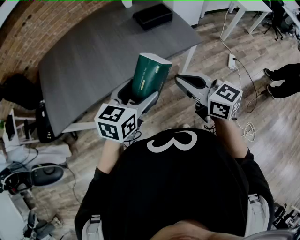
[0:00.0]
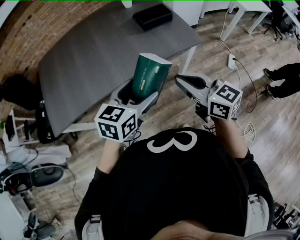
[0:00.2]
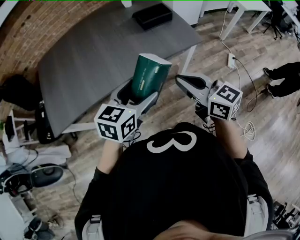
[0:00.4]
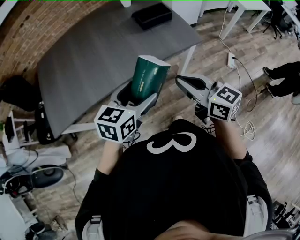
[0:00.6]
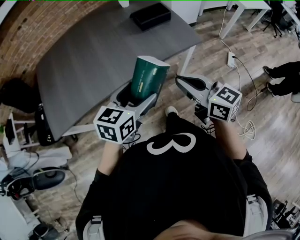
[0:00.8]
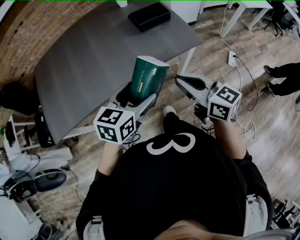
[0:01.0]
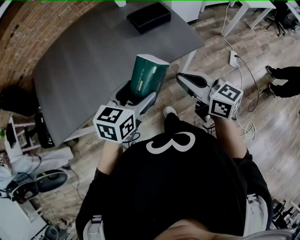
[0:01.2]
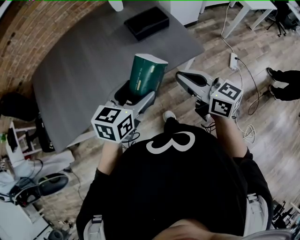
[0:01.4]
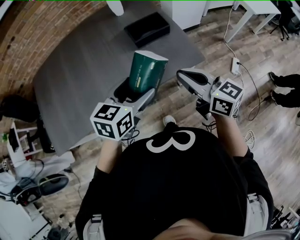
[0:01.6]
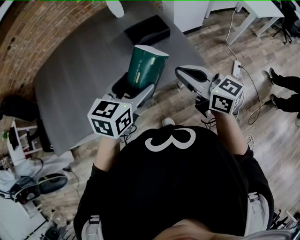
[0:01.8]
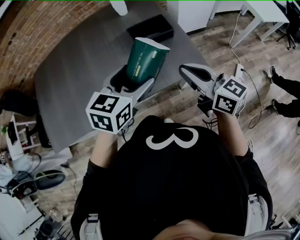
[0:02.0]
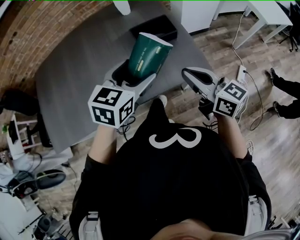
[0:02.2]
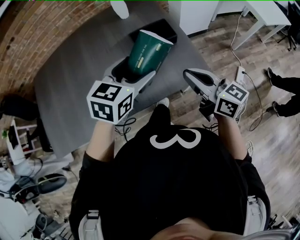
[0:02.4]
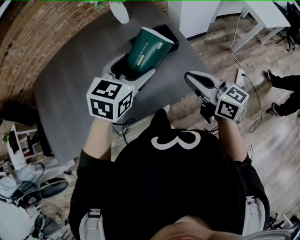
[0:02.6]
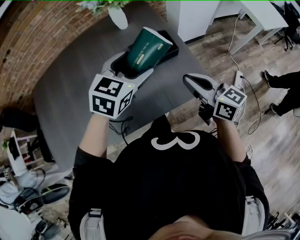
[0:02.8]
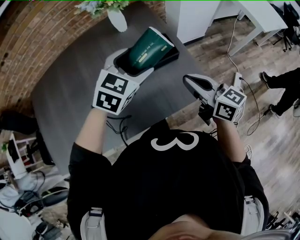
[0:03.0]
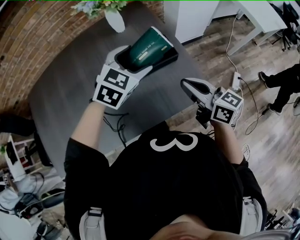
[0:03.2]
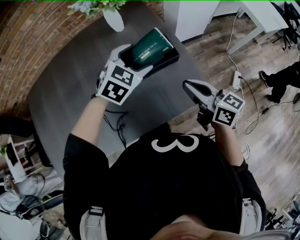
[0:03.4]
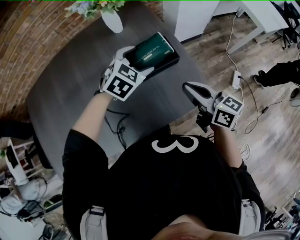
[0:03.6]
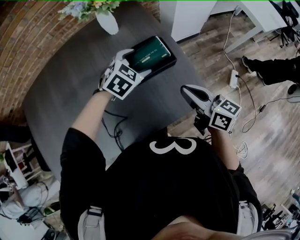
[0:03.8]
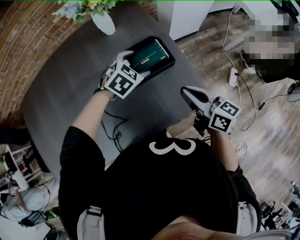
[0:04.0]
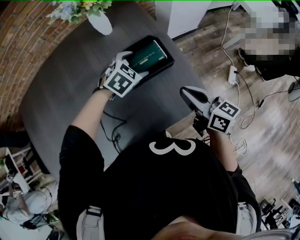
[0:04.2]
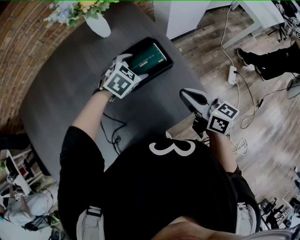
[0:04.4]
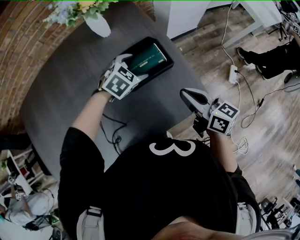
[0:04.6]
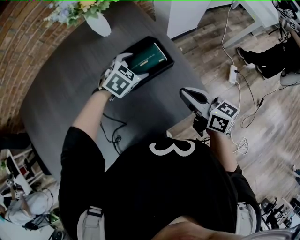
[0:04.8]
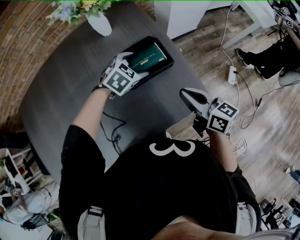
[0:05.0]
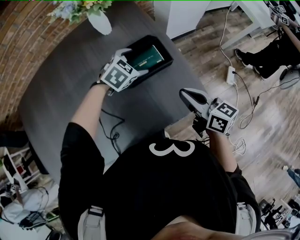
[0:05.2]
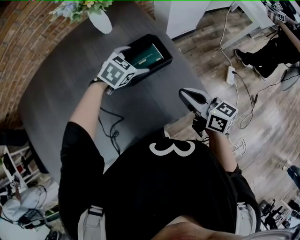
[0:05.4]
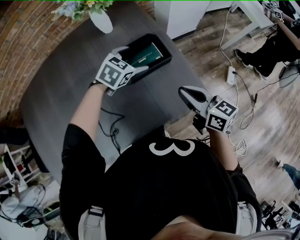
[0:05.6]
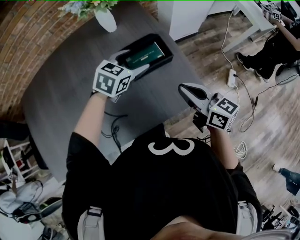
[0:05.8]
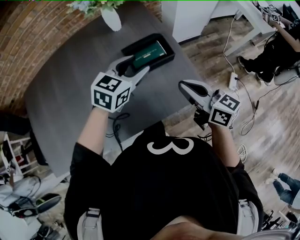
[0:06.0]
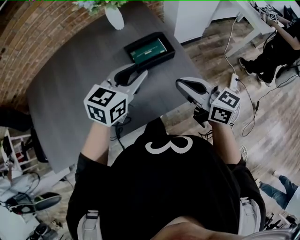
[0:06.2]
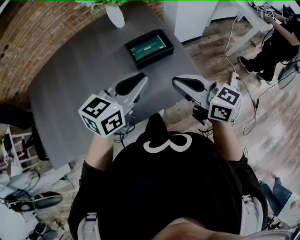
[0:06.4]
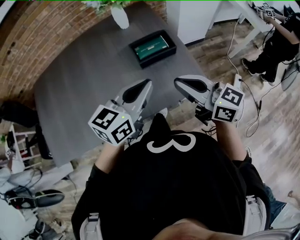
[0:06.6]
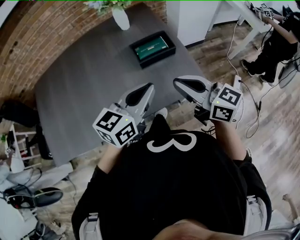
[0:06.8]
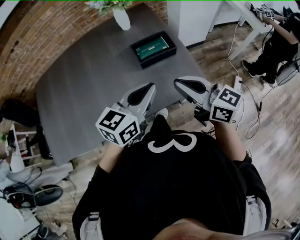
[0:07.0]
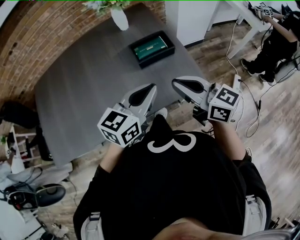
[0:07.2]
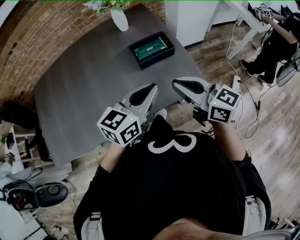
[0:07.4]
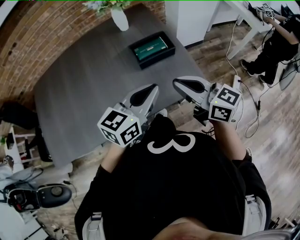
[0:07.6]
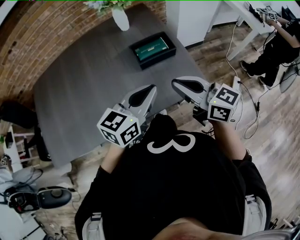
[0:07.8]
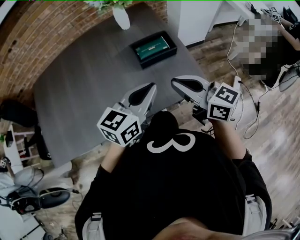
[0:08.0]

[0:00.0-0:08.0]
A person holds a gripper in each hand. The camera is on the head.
0:00.0 to 0:01.6: The right gripper is displaced forward and to the right by some 20 cm. Meanwhile the left gripper shifts some 15 cm forward.
0:01.6 to 0:03.2: The left gripper is displaced forward by some 25 cm, and swivels roughly 30 degrees, while the right gripper moves forward, approximately 15 cm.
0:03.2 to 0:04.8: The left gripper goes roughly 20 cm downward and forward, and changes its angle by some 20 degrees, while the right gripper moves downward, about 5 cm.
0:04.8 to 0:06.4: The right gripper is displaced upward and backward by roughly 15 cm, and swivels about 20 degrees. The left gripper shifts approximately 30 cm backward and upward, tips its fingers upward by roughly 40 degrees, and closes its fingers.
0:06.4 to 0:08.0: The grippers move only a little.

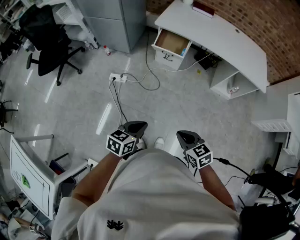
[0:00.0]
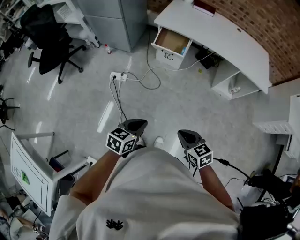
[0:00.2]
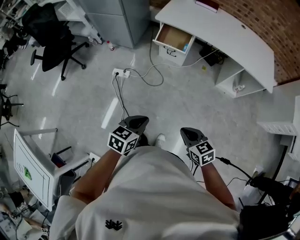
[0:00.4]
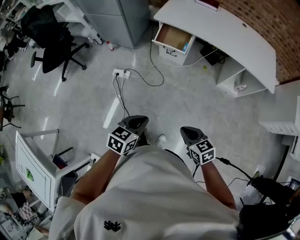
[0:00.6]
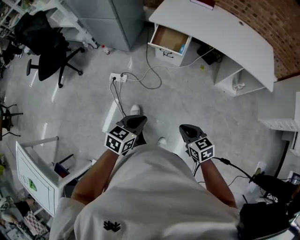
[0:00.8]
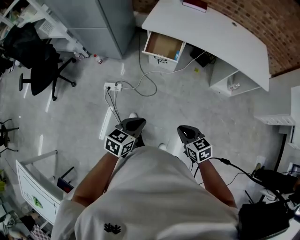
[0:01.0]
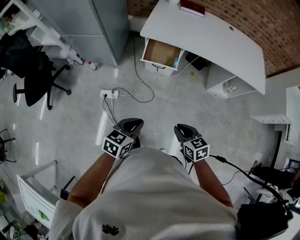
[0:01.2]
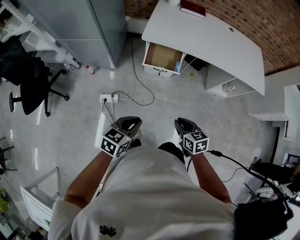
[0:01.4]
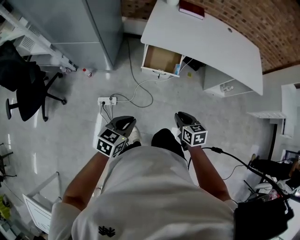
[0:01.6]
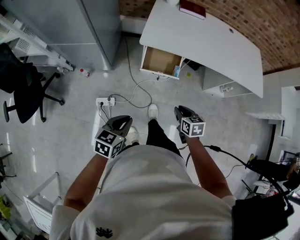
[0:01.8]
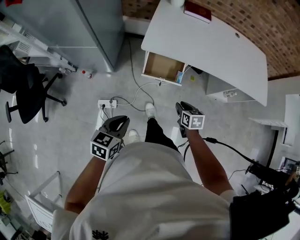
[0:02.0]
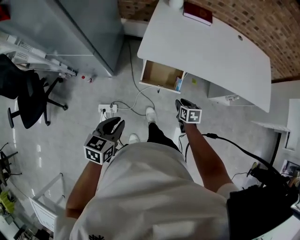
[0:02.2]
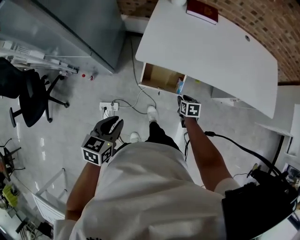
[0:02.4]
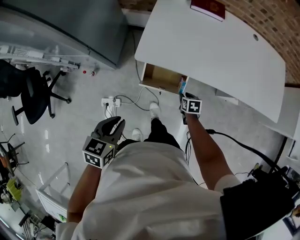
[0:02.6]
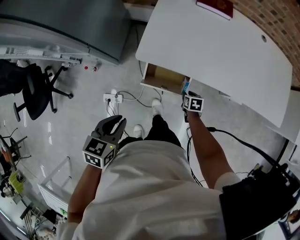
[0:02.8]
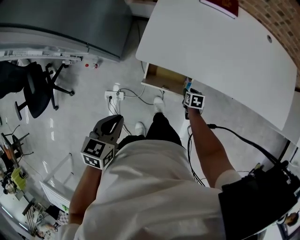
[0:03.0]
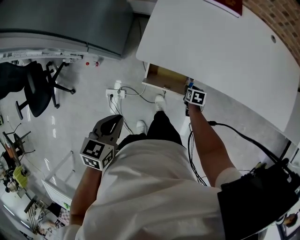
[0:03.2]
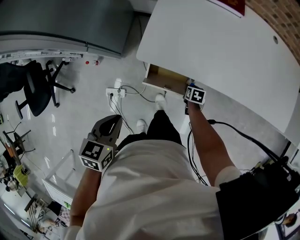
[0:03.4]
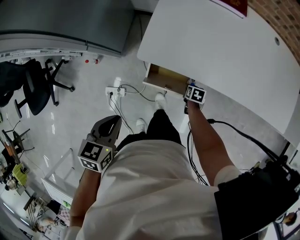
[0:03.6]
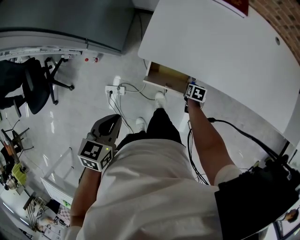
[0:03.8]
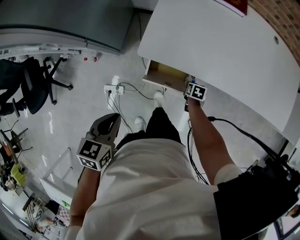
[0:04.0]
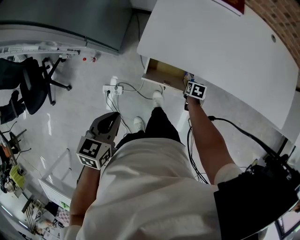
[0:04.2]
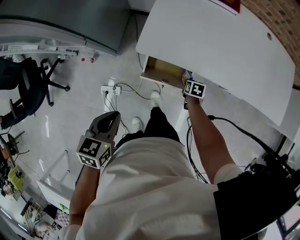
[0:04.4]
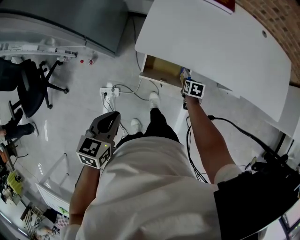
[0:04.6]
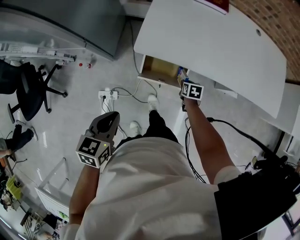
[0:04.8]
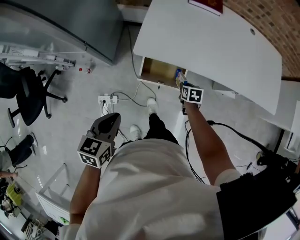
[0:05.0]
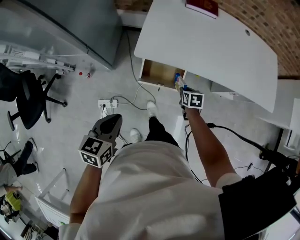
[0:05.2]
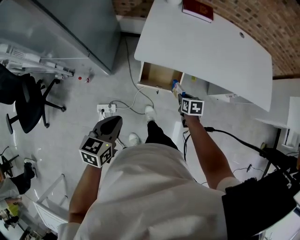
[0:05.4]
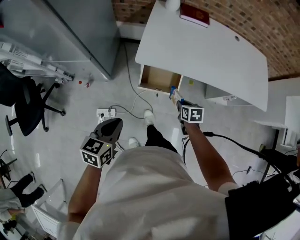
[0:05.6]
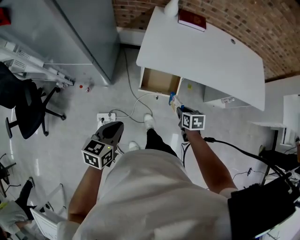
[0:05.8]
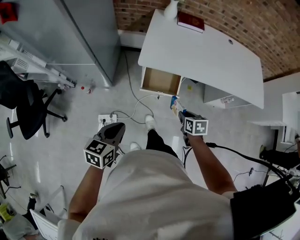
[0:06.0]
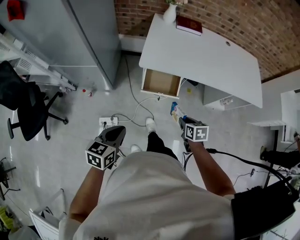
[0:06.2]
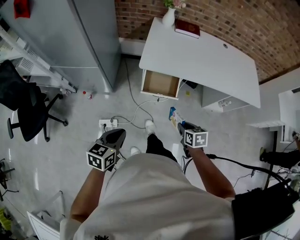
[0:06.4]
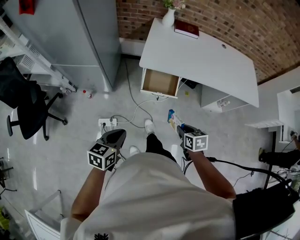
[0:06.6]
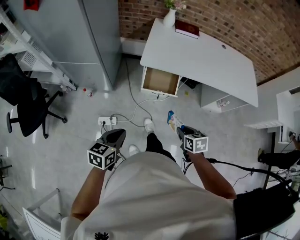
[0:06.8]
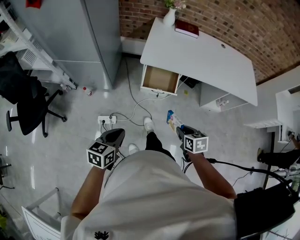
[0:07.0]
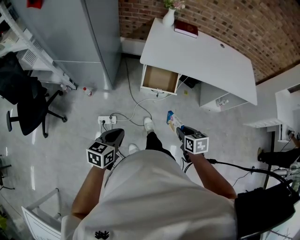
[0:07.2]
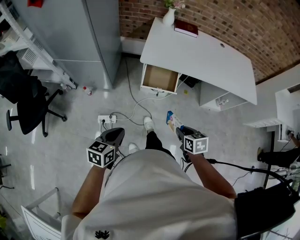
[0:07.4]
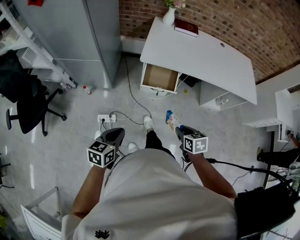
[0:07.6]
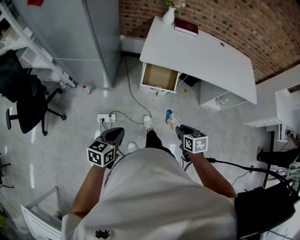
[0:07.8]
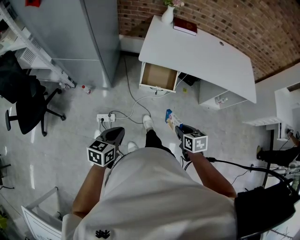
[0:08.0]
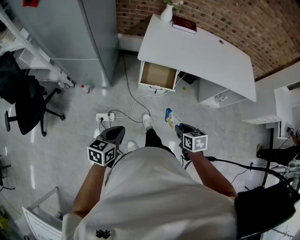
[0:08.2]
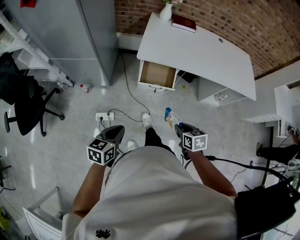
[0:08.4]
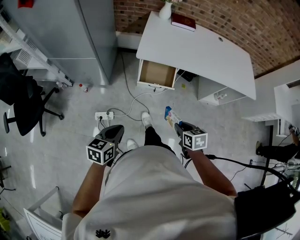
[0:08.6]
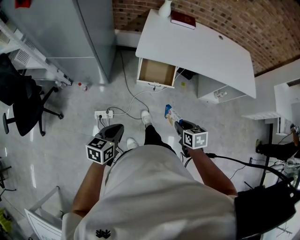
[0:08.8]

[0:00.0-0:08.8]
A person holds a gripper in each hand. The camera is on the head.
0:00.0 to 0:01.4: The two grippers go roughly 35 cm forward. The right gripper rotates approximately 20 degrees.
0:01.4 to 0:03.0: The pair of grippers is taken forward, about 50 cm. The right gripper shifts about 30 cm downward, swivels about 30 degrees, and opens; the left gripper changes its angle by about 20 degrees.
0:03.0 to 0:04.4: The grippers make only small movements.
0:04.4 to 0:05.8: The right gripper travels upward and backward by about 30 cm. Meanwhile the left gripper shifts roughly 15 cm backward and upward.
0:05.8 to 0:07.4: The two grippers go about 25 cm backward.
0:07.4 to 0:08.8: The grippers make only small movements.

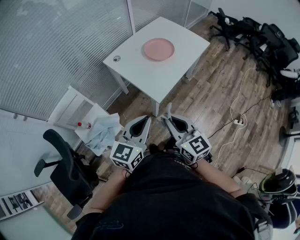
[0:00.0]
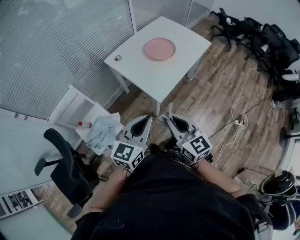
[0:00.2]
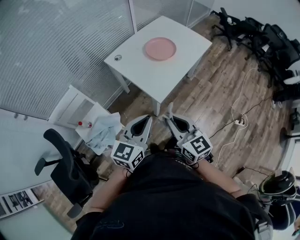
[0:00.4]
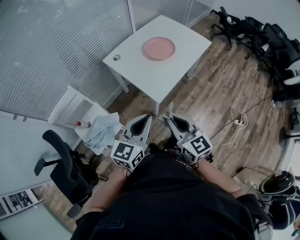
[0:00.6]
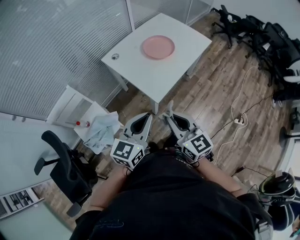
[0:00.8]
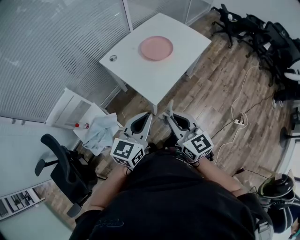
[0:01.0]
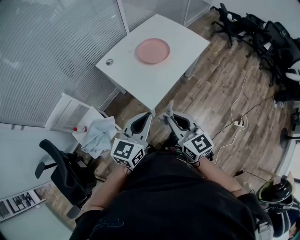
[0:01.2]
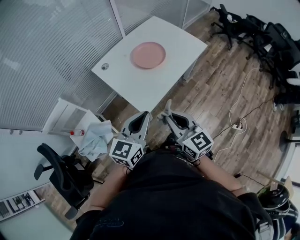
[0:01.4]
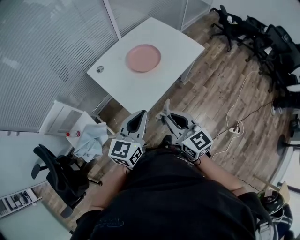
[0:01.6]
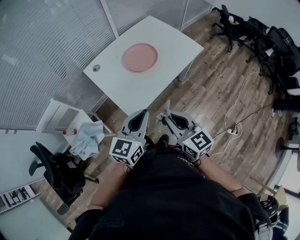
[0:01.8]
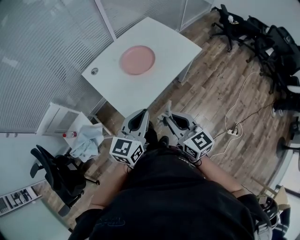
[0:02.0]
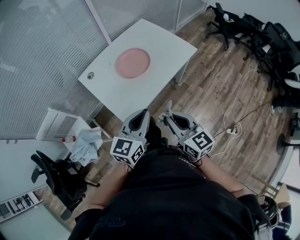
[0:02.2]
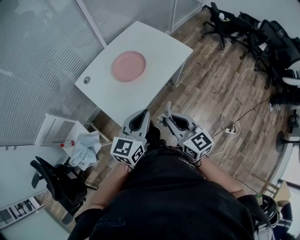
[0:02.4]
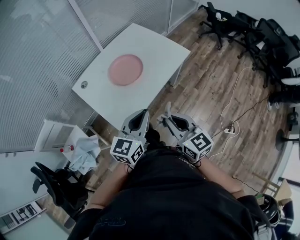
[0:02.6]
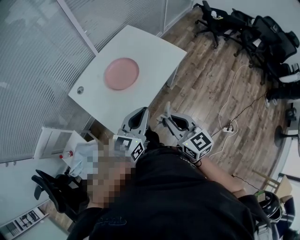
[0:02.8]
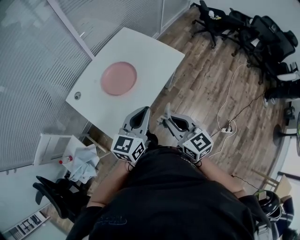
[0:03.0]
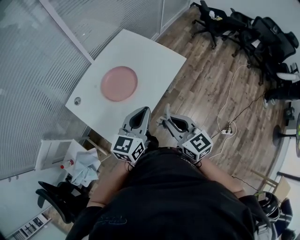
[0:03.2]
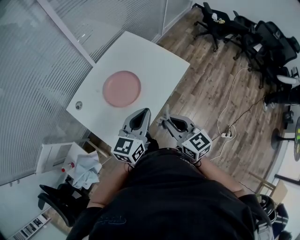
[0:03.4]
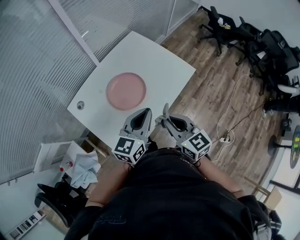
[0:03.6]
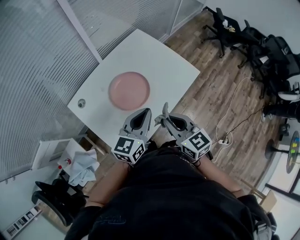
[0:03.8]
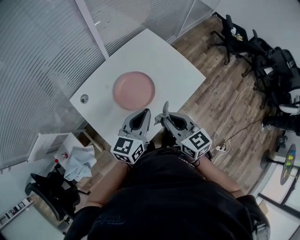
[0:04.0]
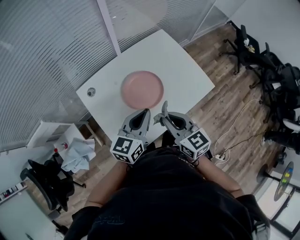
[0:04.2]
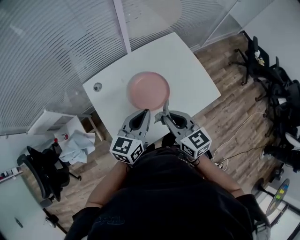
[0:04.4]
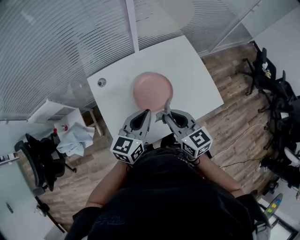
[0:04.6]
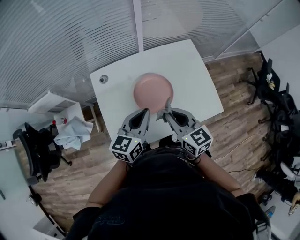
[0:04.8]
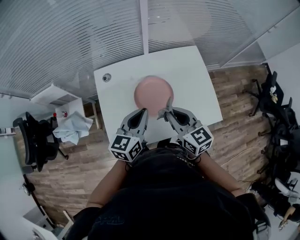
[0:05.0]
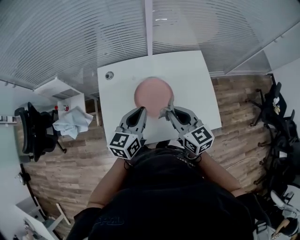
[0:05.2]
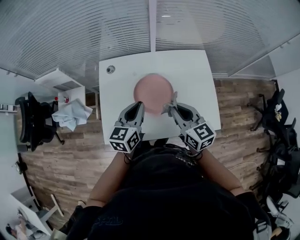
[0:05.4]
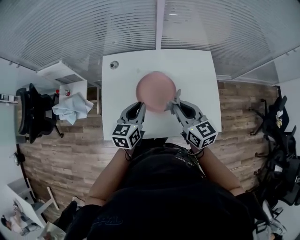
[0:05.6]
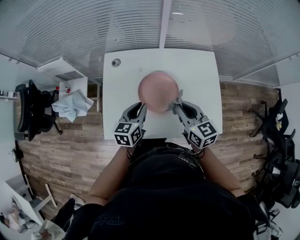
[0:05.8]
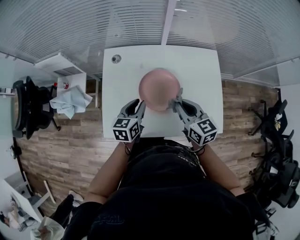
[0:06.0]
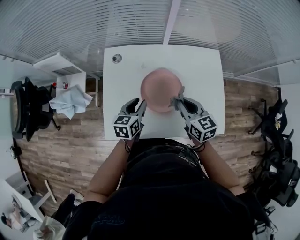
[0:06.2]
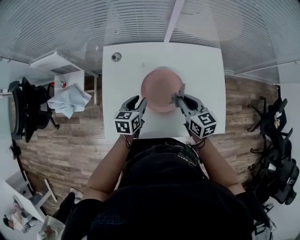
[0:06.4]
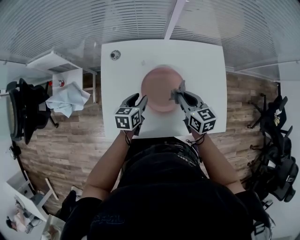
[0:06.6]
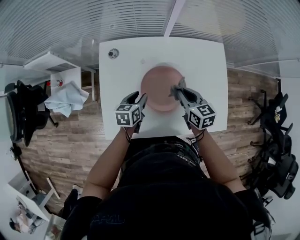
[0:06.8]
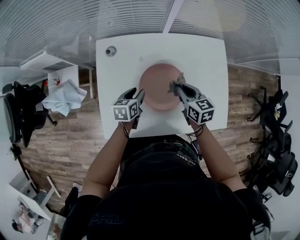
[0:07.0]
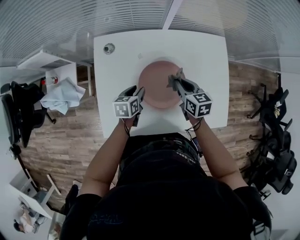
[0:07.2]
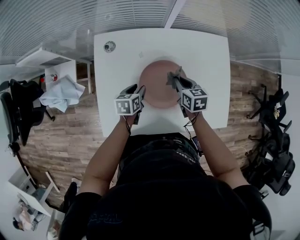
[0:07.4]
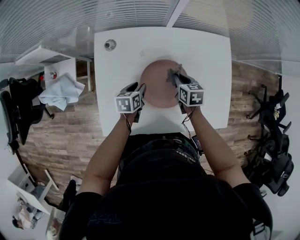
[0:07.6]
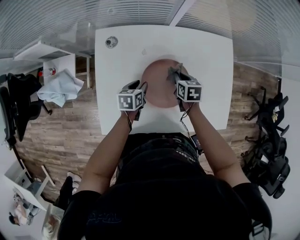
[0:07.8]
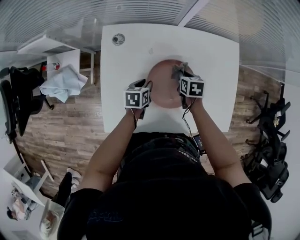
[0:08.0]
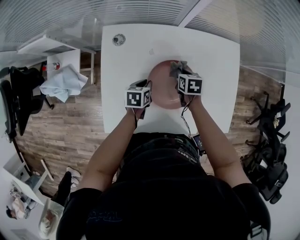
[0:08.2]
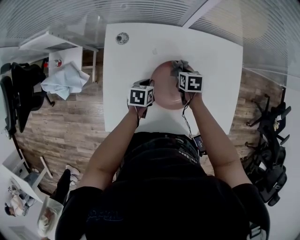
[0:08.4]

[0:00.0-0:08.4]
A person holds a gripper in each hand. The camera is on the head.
0:00.0 to 0:01.4: The two grippers go about 15 cm forward and to the right.
0:01.4 to 0:02.8: The grippers both shift to the right and forward by roughly 20 cm.
0:02.8 to 0:04.2: The two grippers go some 20 cm forward and to the left.
0:04.2 to 0:05.6: The left gripper is displaced downward by about 5 cm, and rotates roughly 40 degrees. The right gripper shifts by about 15 cm, and changes its angle by approximately 30 degrees.
0:05.6 to 0:07.0: Both grippers move downward and forward, approximately 20 cm. The left gripper turns by roughly 30 degrees, and opens up.
0:07.0 to 0:08.4: The left gripper travels downward by approximately 5 cm, and closes; the right gripper moves downward and forward, roughly 15 cm, and turns by some 30 degrees.
